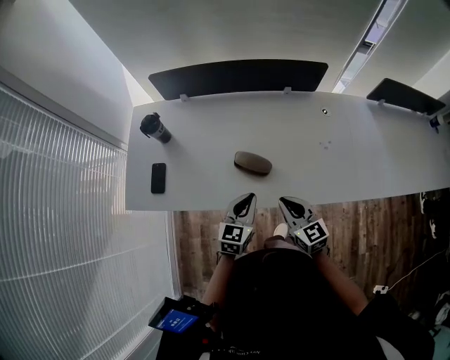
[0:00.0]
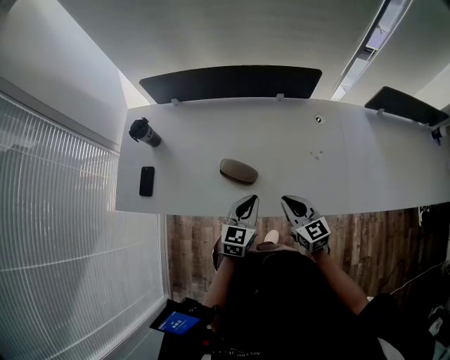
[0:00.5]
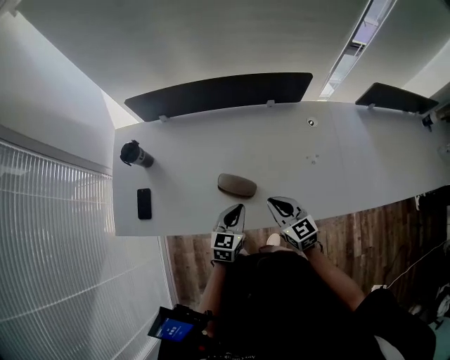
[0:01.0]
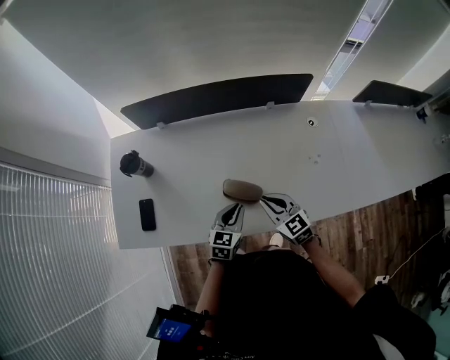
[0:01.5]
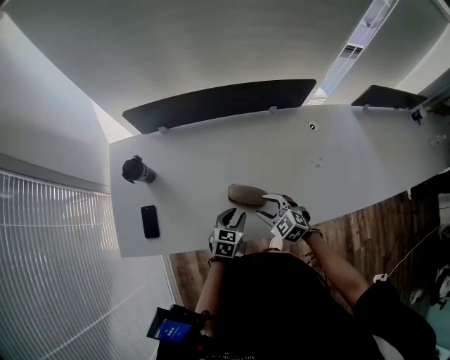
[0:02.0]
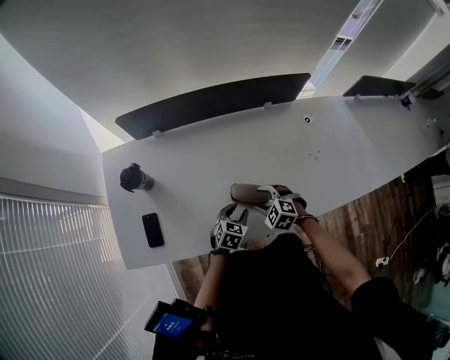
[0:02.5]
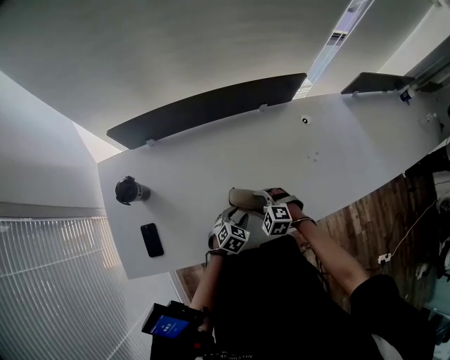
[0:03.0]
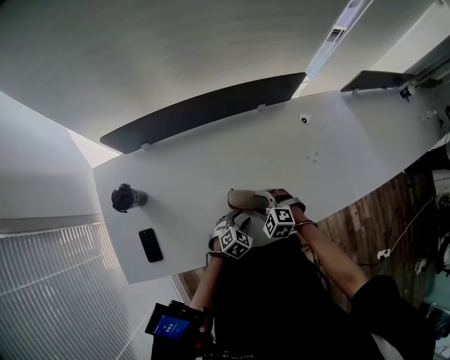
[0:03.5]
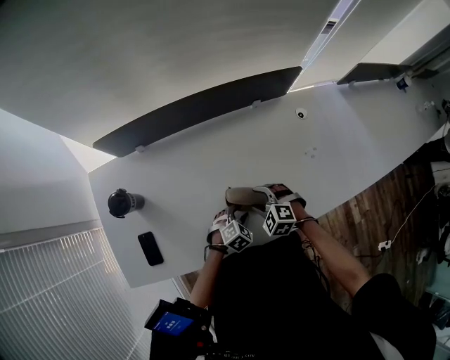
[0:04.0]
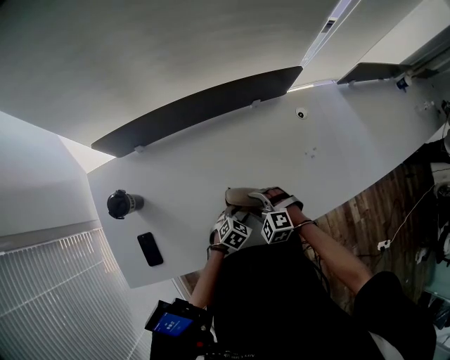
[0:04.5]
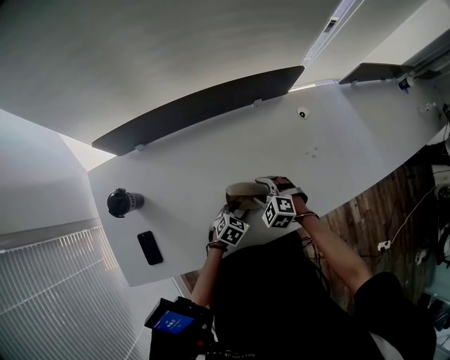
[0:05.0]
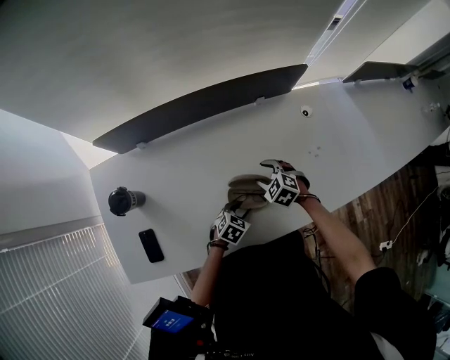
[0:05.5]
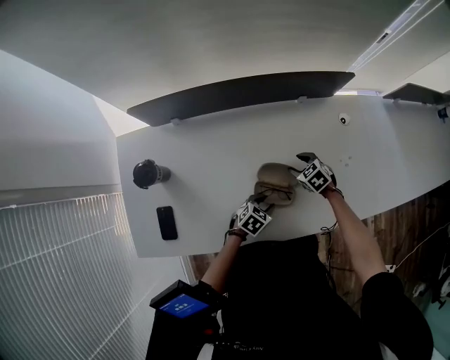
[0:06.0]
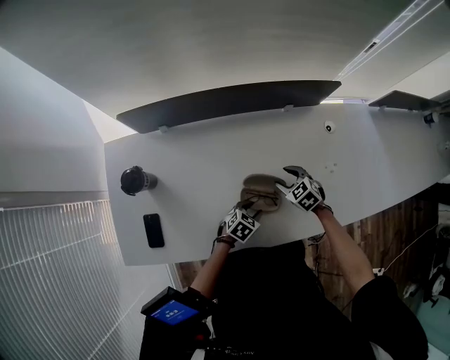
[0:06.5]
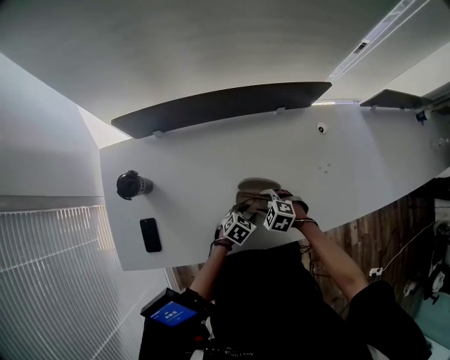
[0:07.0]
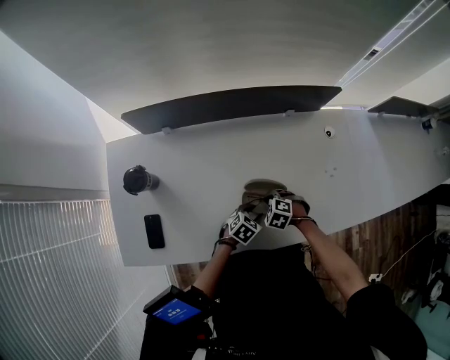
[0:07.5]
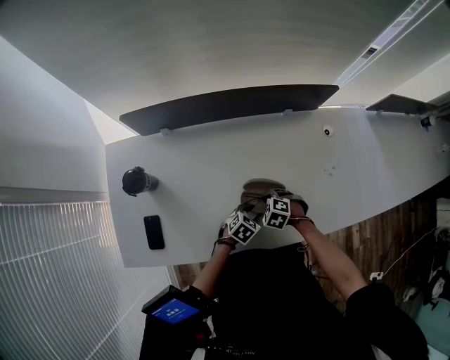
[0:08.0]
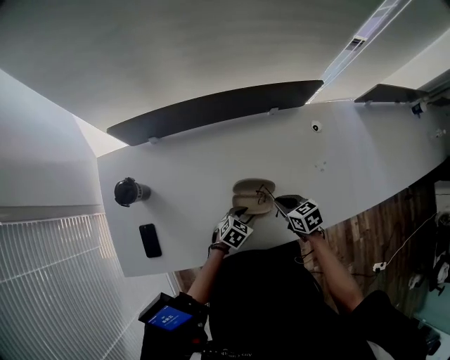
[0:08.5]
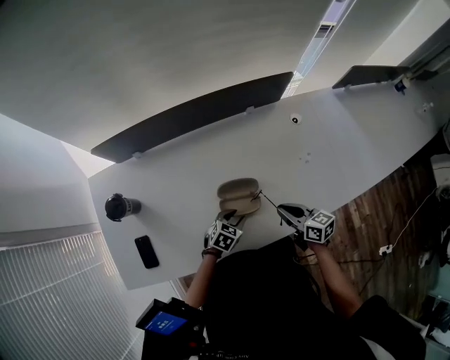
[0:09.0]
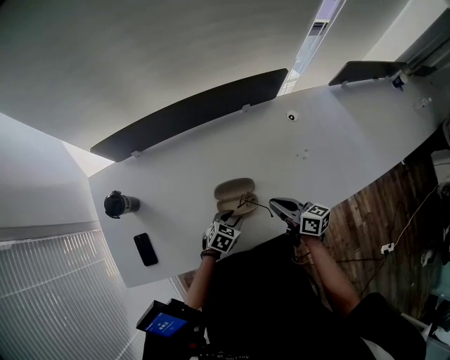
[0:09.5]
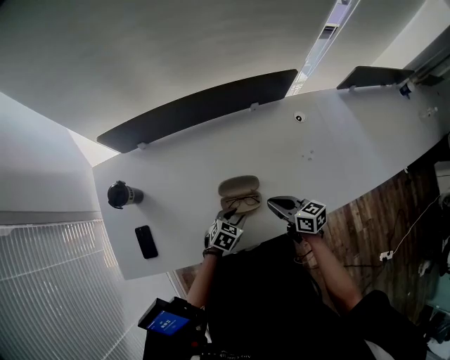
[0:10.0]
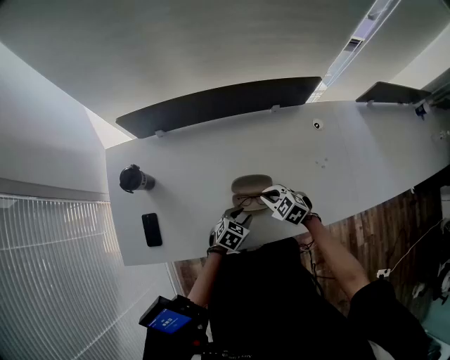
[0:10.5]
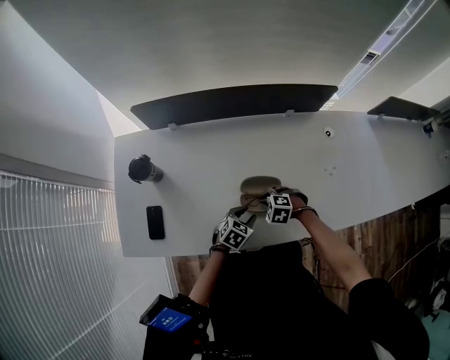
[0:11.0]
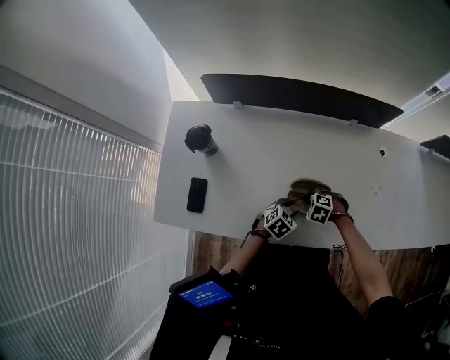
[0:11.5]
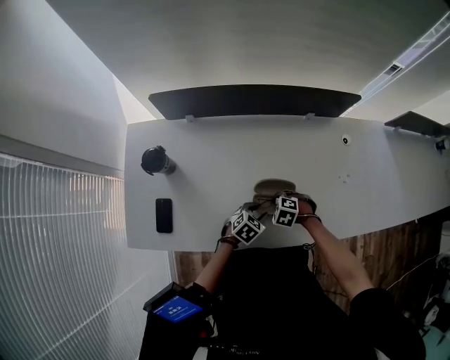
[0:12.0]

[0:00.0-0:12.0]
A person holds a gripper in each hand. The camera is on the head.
0:00.0 to 0:02.0: The right gripper moves forward, downward and to the left, approximately 15 cm, turns by about 40 degrees, and opens up, while the left gripper is displaced downward and forward by about 15 cm, swivels roughly 20 degrees, and opens.
0:02.0 to 0:04.0: The right gripper moves downward and forward, about 10 cm. The left gripper moves downward, roughly 10 cm, and changes its angle by some 40 degrees.
0:04.0 to 0:06.0: The left gripper changes its angle by about 30 degrees. Meanwhile the right gripper heads forward and downward, covering some 15 cm, and turns by approximately 30 degrees.
0:06.0 to 0:08.0: The right gripper changes place by approximately 15 cm, swivels some 30 degrees, and closes its fingers.
0:08.0 to 0:10.0: The right gripper moves upward, approximately 15 cm, and points its fingers approximately 50 degrees further upward.
0:10.0 to 0:12.0: The right gripper travels downward by about 15 cm, and points its fingers some 50 degrees further downward.

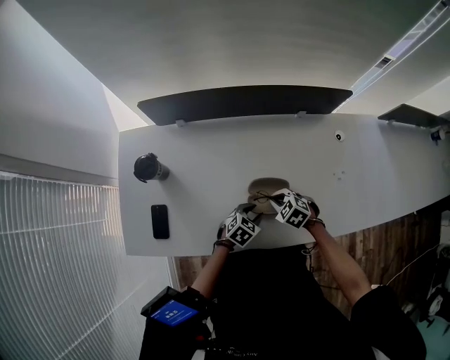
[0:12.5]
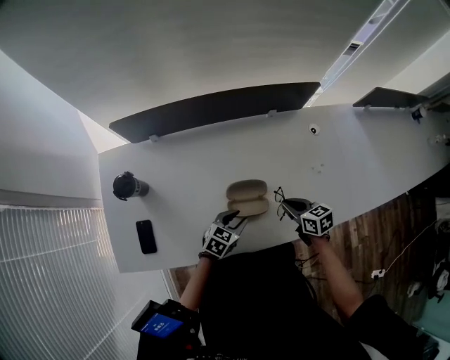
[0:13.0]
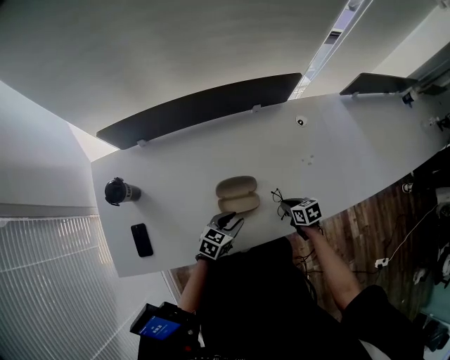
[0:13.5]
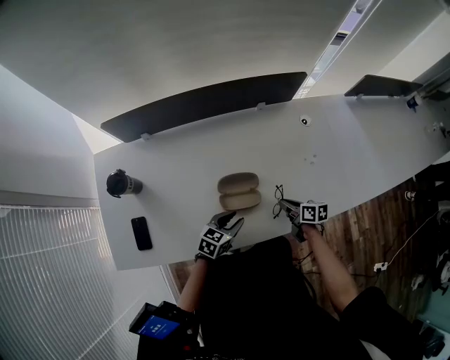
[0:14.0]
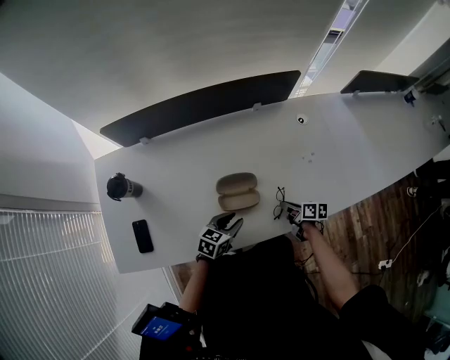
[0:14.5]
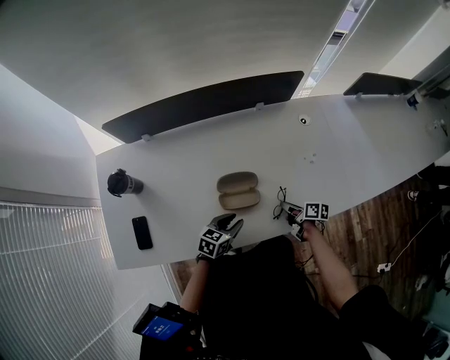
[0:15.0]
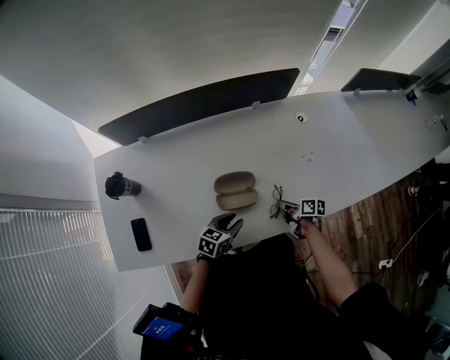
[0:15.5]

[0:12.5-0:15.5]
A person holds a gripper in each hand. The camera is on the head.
0:12.5 to 0:14.0: The left gripper shifts by roughly 5 cm. Meanwhile the right gripper travels upward and back again, about 5 cm each way, and rotates around the line of its fingers by about 70 degrees, clockwise from behind.
0:14.0 to 0:15.5: The grippers move only a little.

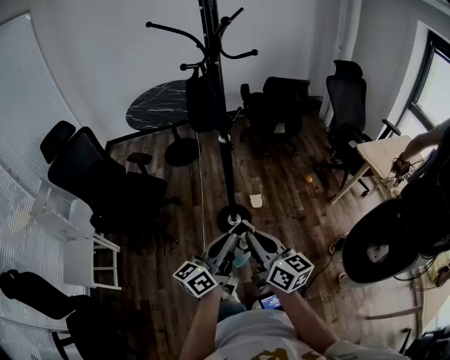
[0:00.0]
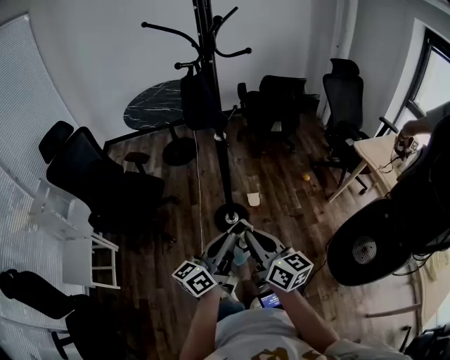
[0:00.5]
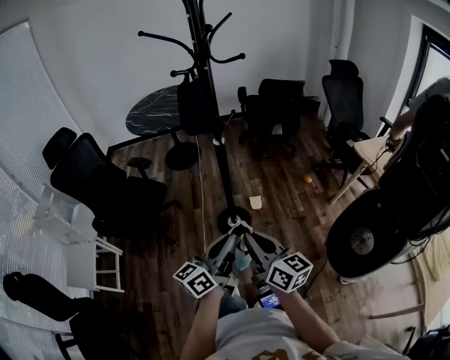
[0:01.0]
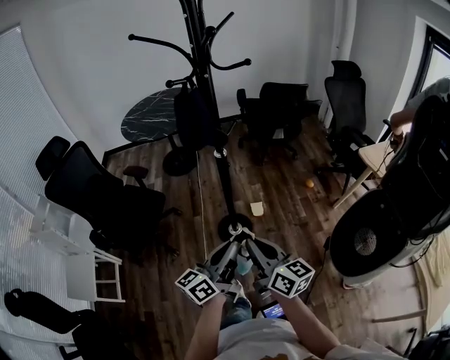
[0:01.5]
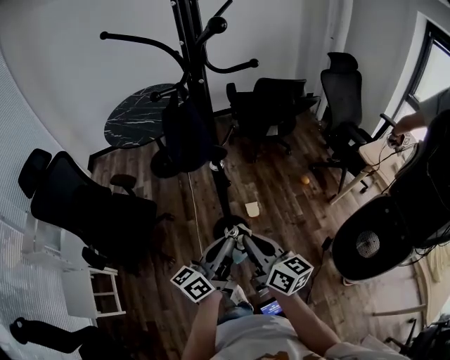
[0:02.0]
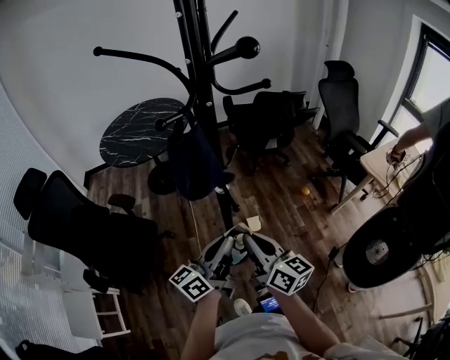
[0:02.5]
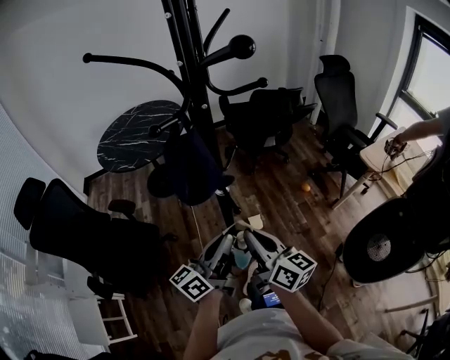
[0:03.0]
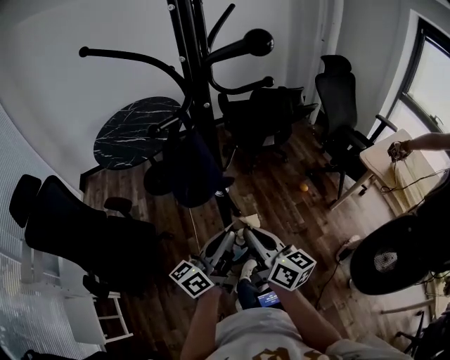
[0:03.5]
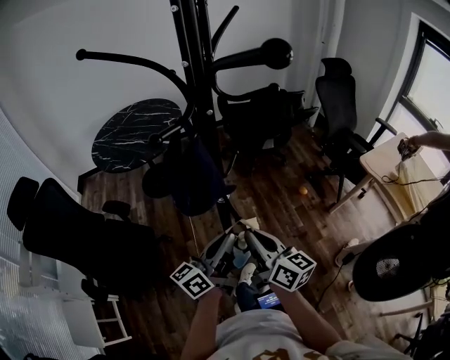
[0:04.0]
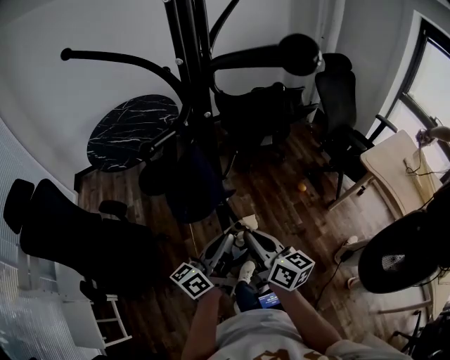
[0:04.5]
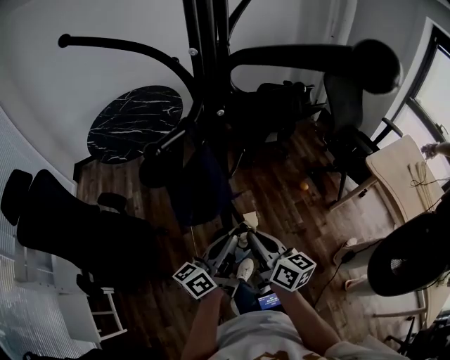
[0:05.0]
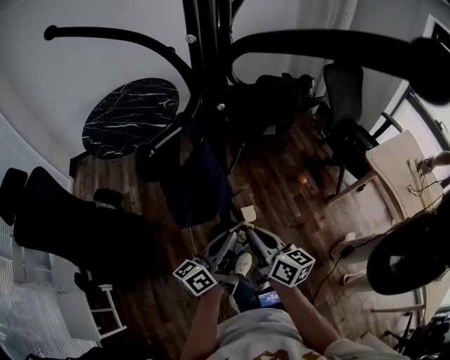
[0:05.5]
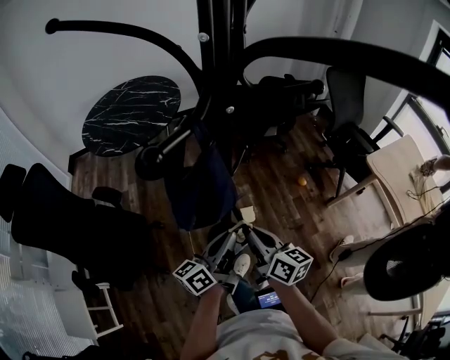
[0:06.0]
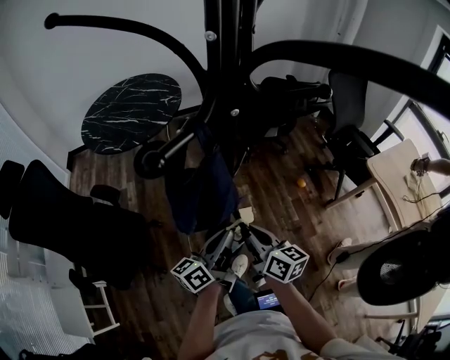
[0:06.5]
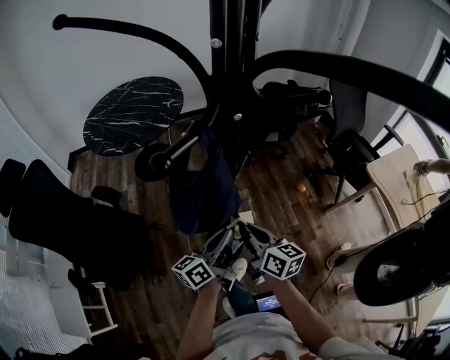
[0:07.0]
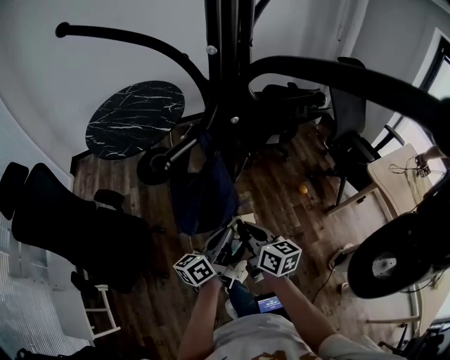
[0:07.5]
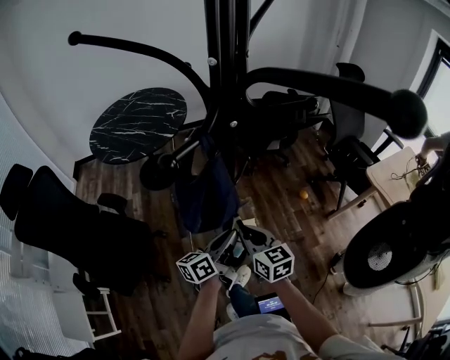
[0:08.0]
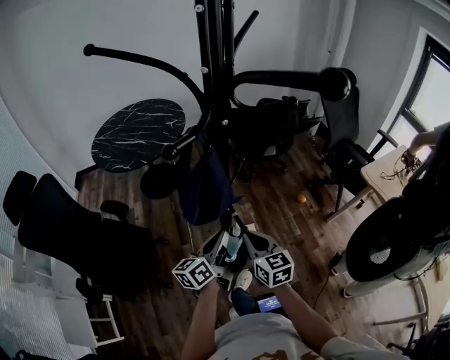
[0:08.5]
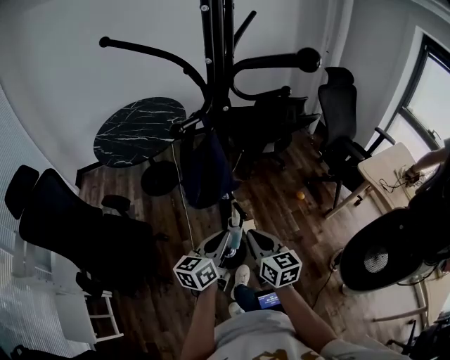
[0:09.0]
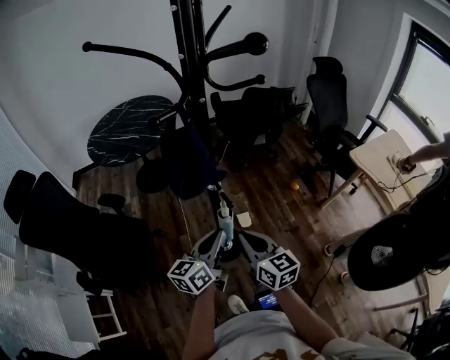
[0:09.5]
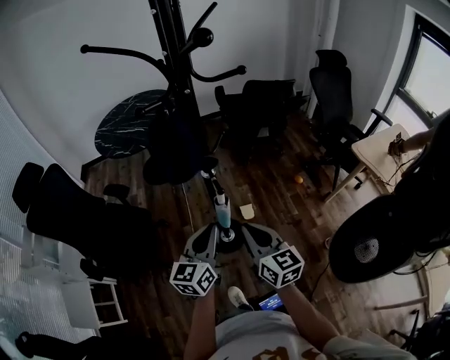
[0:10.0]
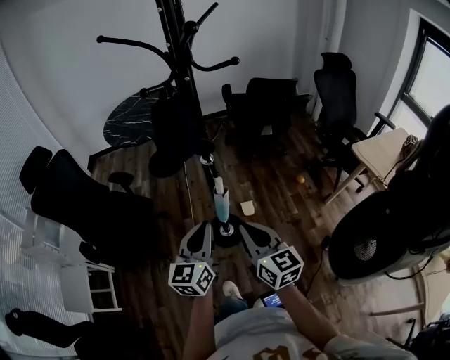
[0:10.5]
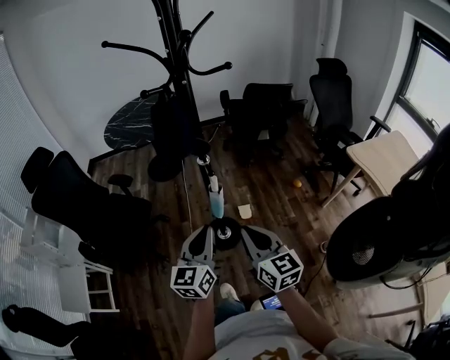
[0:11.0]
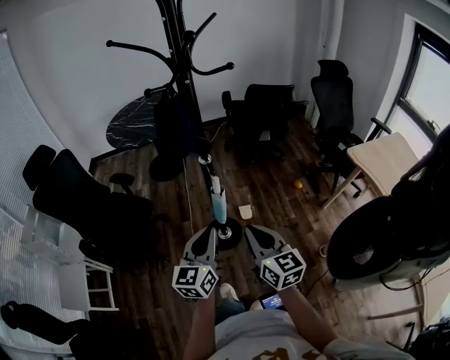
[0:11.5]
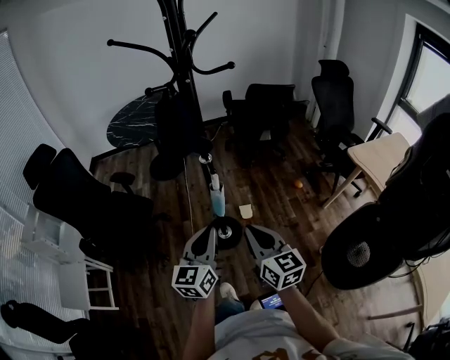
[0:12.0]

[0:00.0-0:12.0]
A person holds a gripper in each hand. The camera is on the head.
0:00.0 to 0:02.0: The two grippers go about 15 cm forward.
0:02.0 to 0:04.0: The two grippers go roughly 15 cm forward.
0:04.0 to 0:06.0: The left gripper heads downward, covering approximately 10 cm. Meanwhile the right gripper shifts some 10 cm downward and forward.
0:06.0 to 0:08.0: The right gripper swivels roughly 30 degrees.
0:08.0 to 0:10.0: The left gripper shifts approximately 15 cm backward and upward, and swivels roughly 40 degrees. Meanwhile the right gripper travels backward, upward and to the right by some 20 cm.
0:10.0 to 0:12.0: The two grippers go roughly 10 cm backward.
